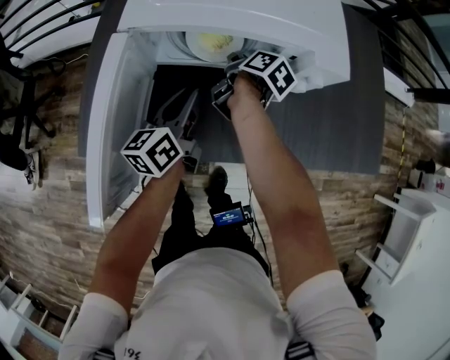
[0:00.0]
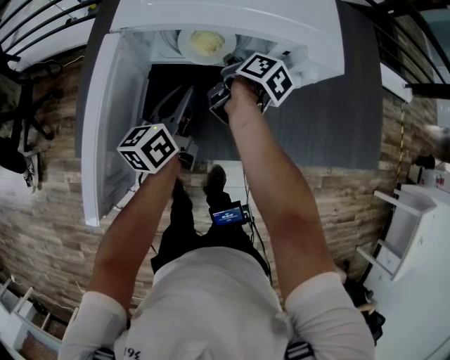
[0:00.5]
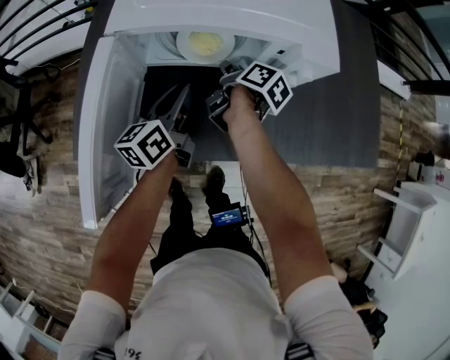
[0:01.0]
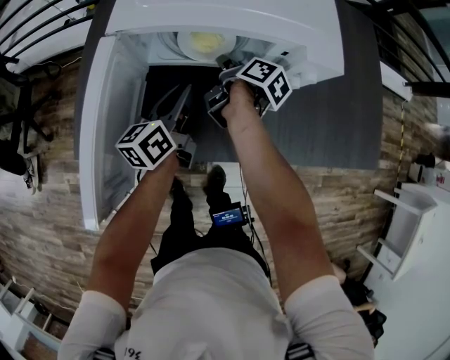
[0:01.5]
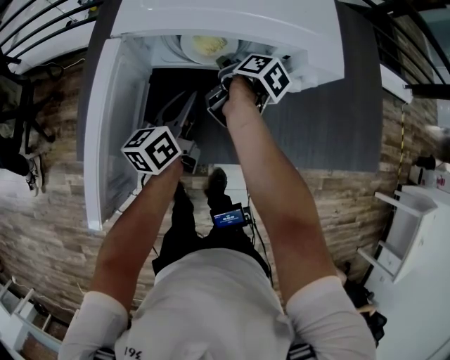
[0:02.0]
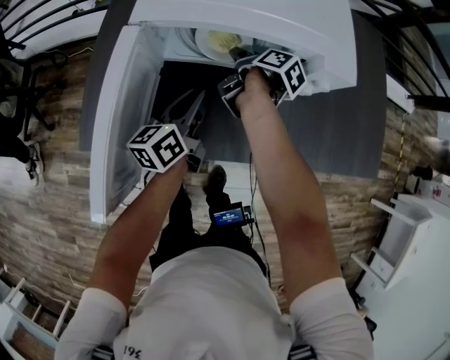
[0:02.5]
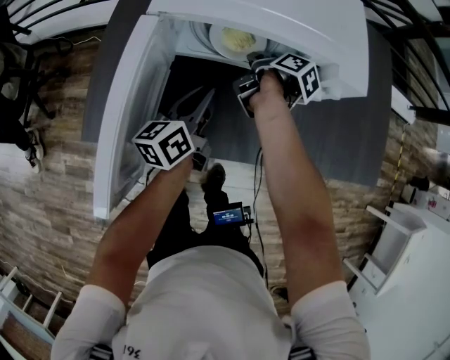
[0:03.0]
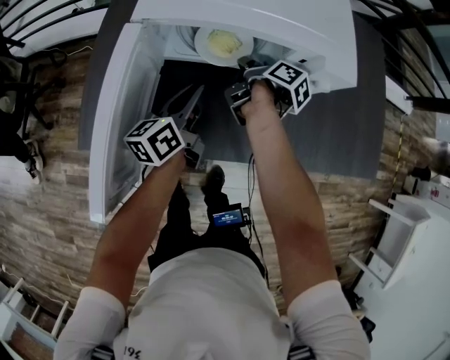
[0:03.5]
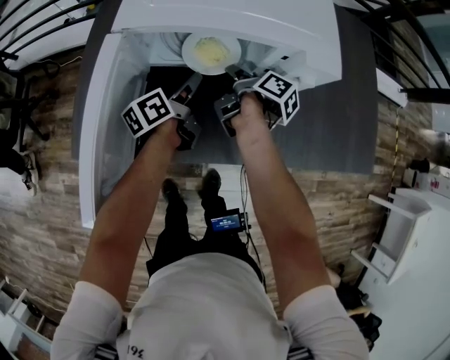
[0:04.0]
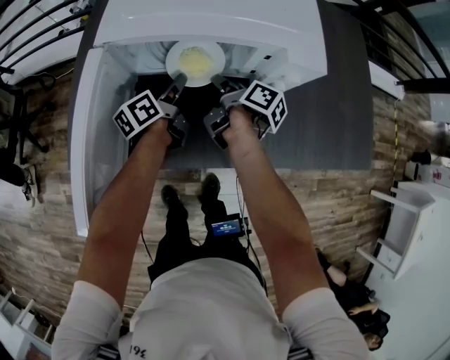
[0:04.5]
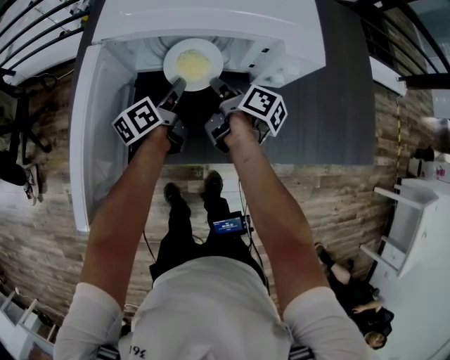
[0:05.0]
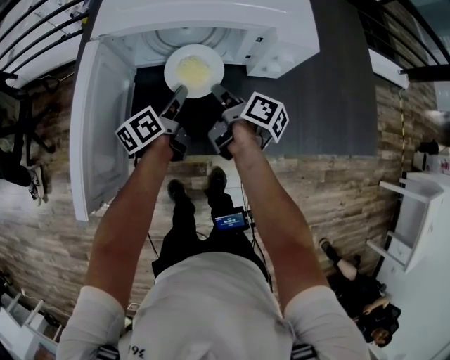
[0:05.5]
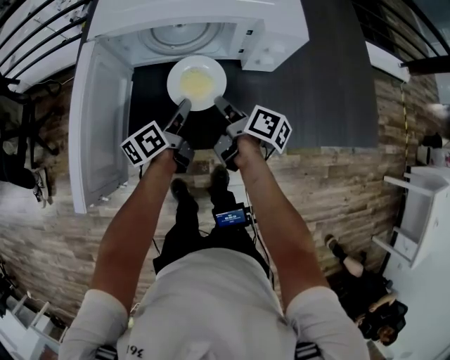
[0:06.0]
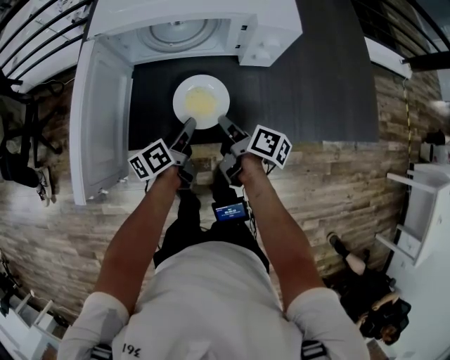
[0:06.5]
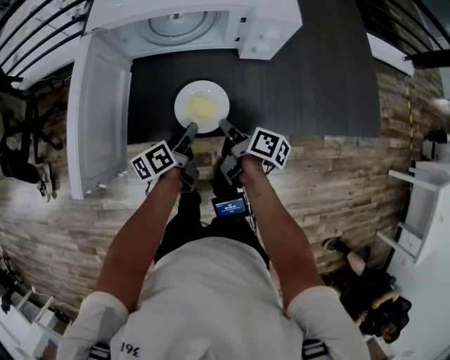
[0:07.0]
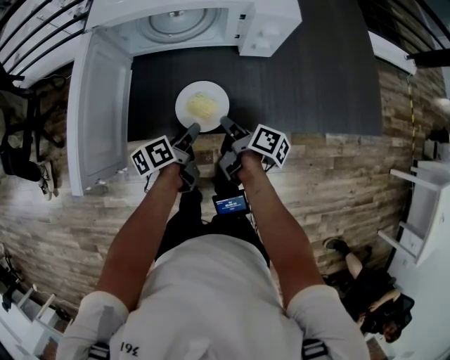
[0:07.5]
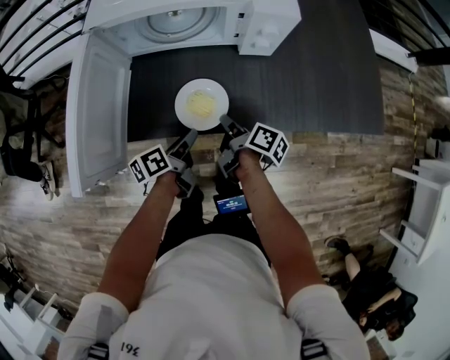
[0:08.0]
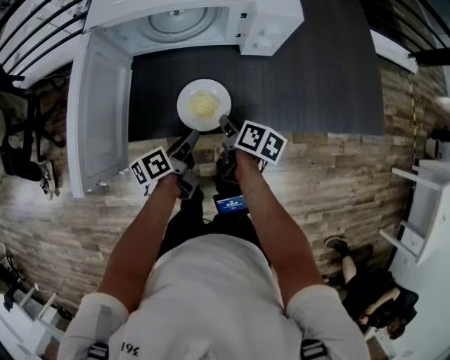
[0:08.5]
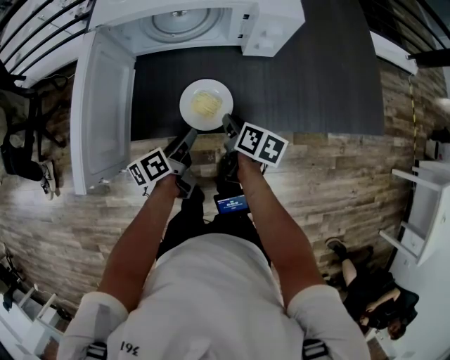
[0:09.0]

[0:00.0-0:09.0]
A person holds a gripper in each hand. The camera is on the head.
0:00.0 to 0:02.0: The right gripper opens its fingers.
0:02.0 to 0:04.5: The right gripper rotates about 20 degrees, and closes its fingers; the left gripper shifts some 10 cm forward and downward.
0:04.5 to 0:07.0: Both grippers travel together backward, approximately 20 cm.
0:07.0 to 0:09.0: The right gripper changes its angle by roughly 20 degrees.

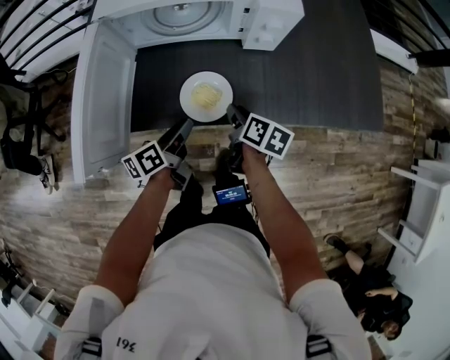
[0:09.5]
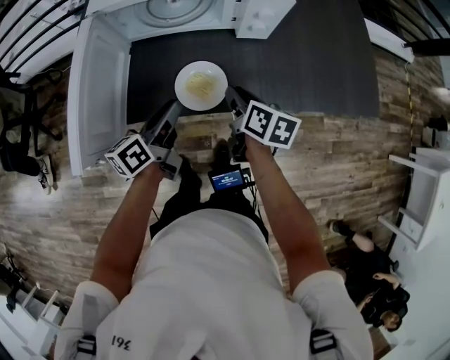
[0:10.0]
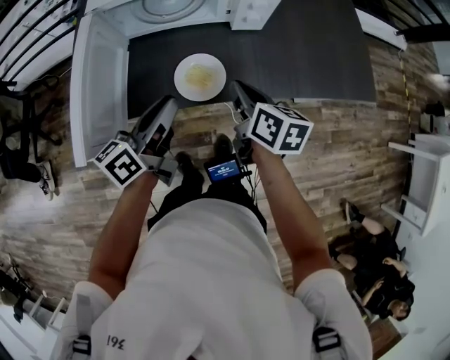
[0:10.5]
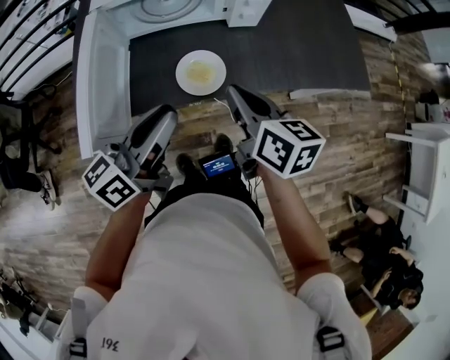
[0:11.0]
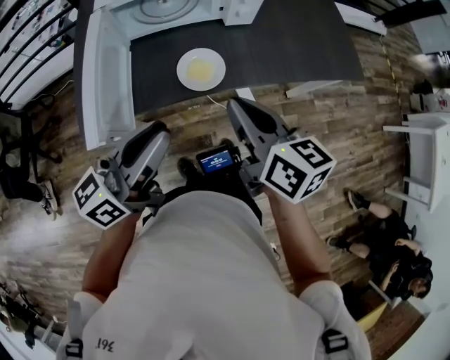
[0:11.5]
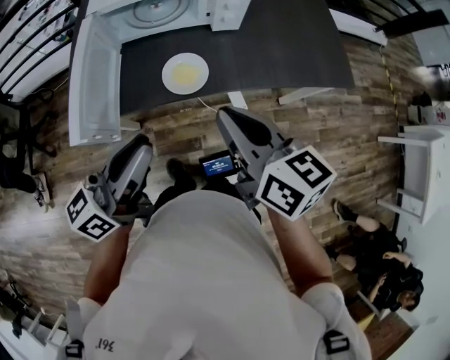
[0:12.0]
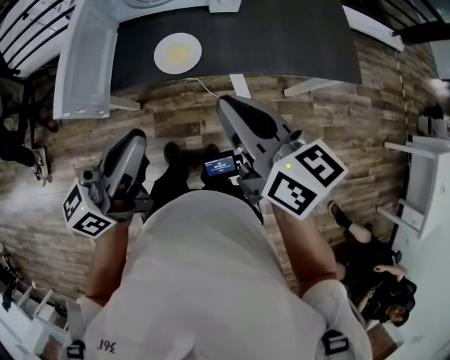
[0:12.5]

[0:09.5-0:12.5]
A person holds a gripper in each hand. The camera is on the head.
0:09.5 to 0:11.0: The right gripper travels upward and backward by about 20 cm, rotates roughly 30 degrees, and closes up. Meanwhile the left gripper heads upward, covering about 20 cm, and turns by about 40 degrees.
0:11.0 to 0:12.5: The left gripper heads backward, to the right and upward, covering approximately 15 cm, while the right gripper is displaced backward, upward and to the right by approximately 15 cm.

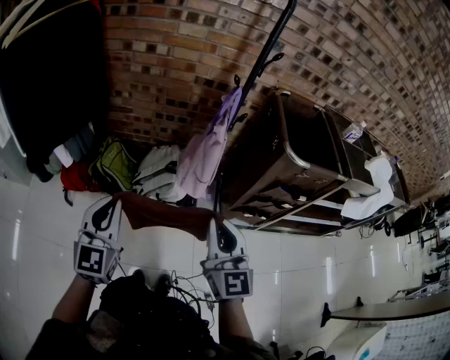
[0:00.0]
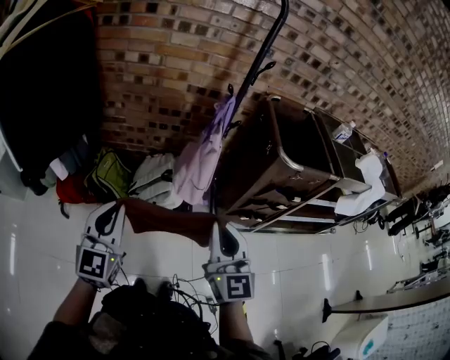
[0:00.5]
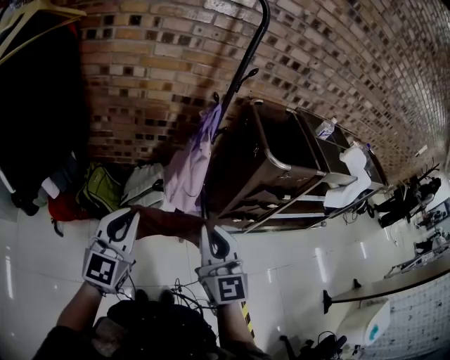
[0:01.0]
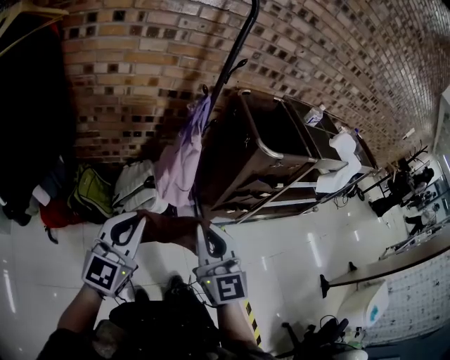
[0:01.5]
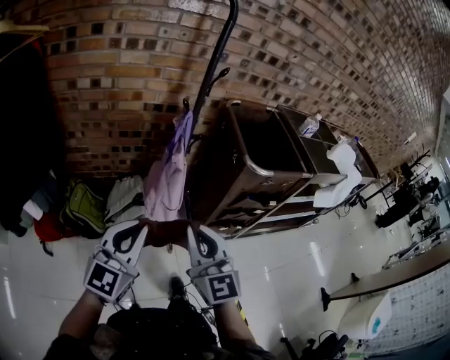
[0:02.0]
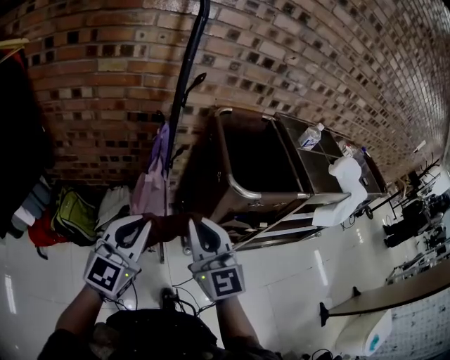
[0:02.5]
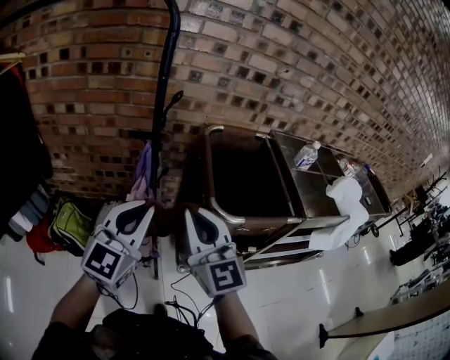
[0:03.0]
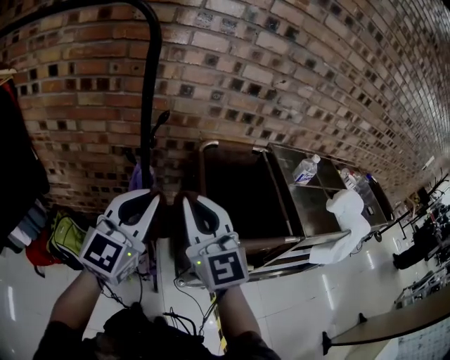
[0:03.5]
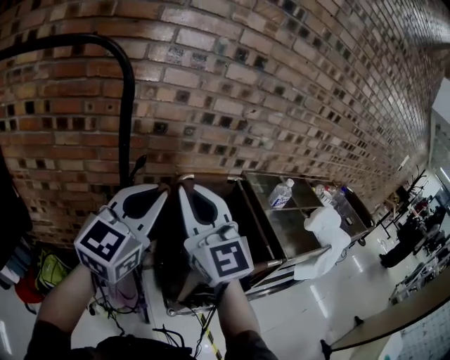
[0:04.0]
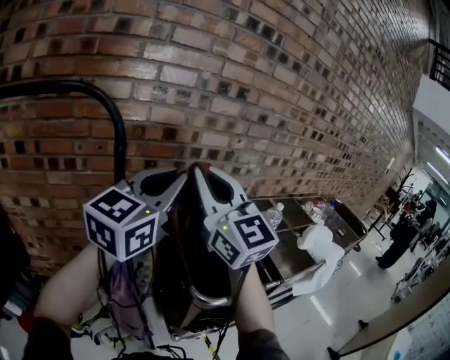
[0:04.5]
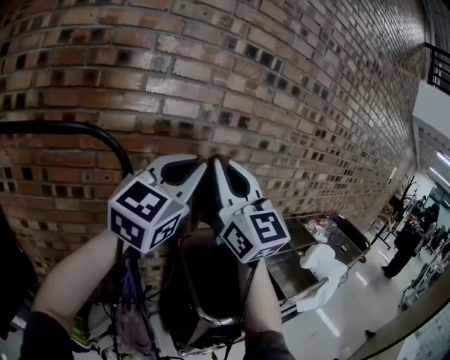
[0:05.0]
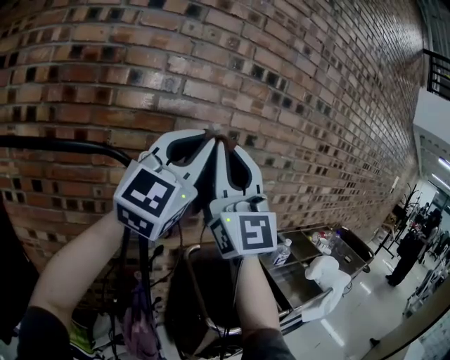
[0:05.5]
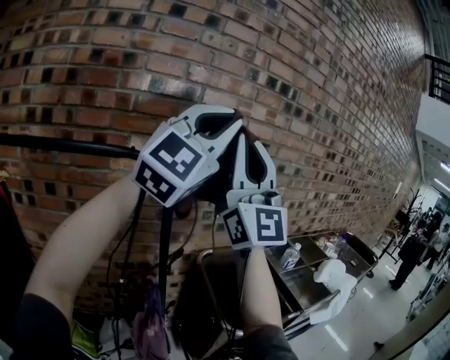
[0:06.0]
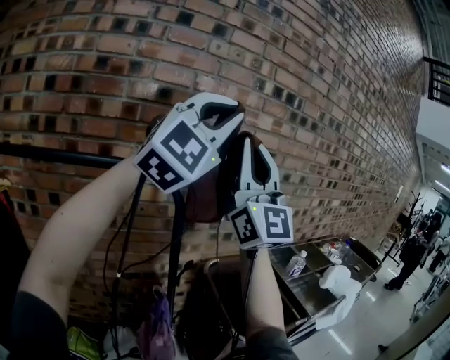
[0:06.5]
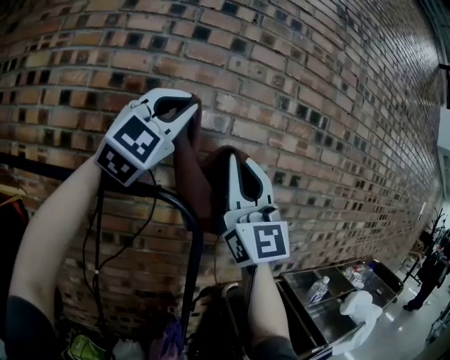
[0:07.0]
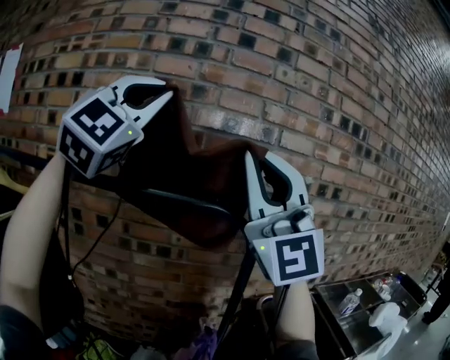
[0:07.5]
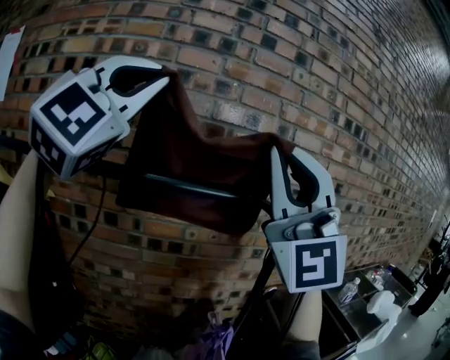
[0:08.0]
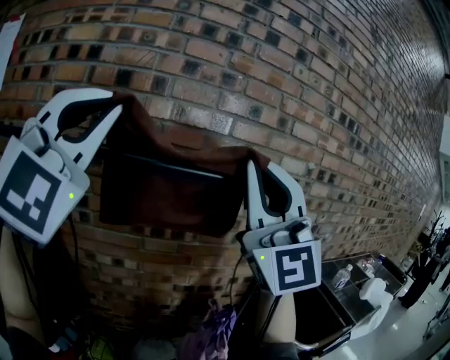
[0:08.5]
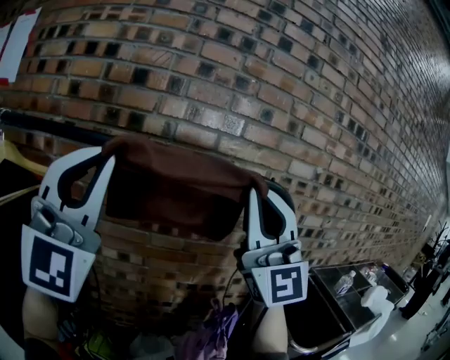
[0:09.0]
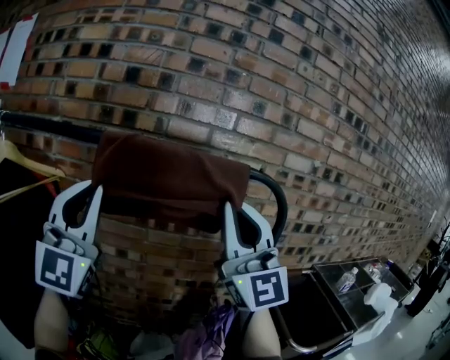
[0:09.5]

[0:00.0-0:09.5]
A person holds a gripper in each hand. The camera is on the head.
0:00.0 to 0:02.0: The right gripper shifts approximately 5 cm forward. The left gripper travels to the right and forward by about 15 cm, and rotates roughly 30 degrees.
0:02.0 to 0:04.0: The left gripper moves forward, to the right and upward, roughly 50 cm. Meanwhile the right gripper travels forward, upward and to the right by approximately 40 cm.
0:04.0 to 0:05.5: Both grippers travel together upward, about 30 cm. The left gripper turns by some 30 degrees, while the right gripper points its fingers roughly 30 degrees further upward.
0:05.5 to 0:07.5: The right gripper changes place by about 20 cm, and swivels about 20 degrees. The left gripper changes place by about 35 cm, and turns by approximately 40 degrees.
0:07.5 to 0:09.5: The right gripper is displaced downward and to the left by about 20 cm. Meanwhile the left gripper heads downward and to the left, covering some 30 cm, and swivels roughly 30 degrees.

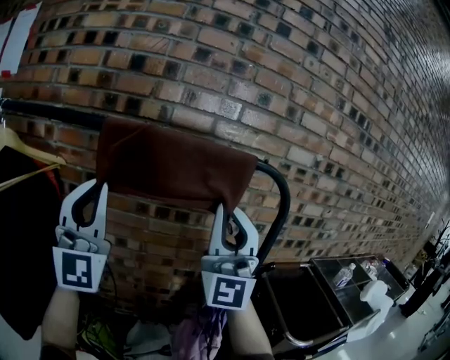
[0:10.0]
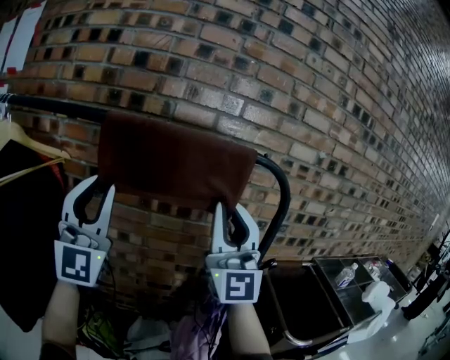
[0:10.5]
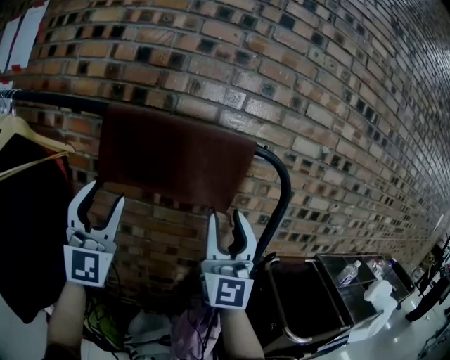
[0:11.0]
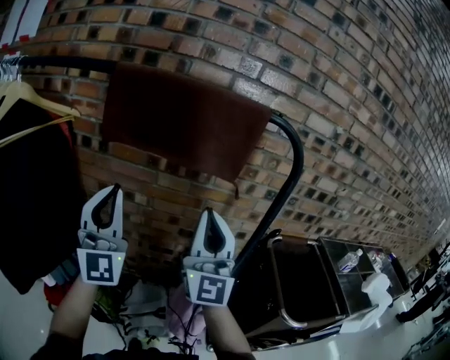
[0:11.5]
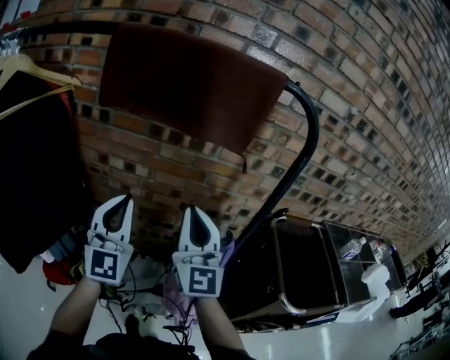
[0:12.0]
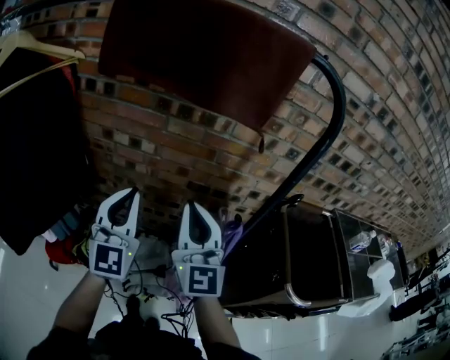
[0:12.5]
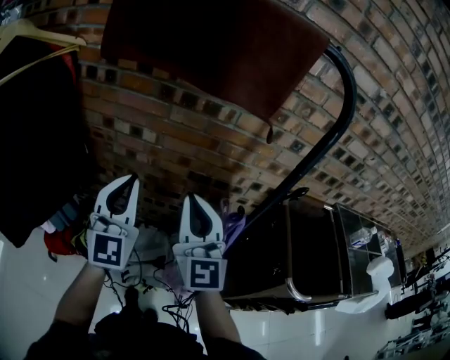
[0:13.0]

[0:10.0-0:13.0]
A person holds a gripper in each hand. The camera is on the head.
0:10.0 to 0:11.5: Both grippers move downward, about 15 cm. The left gripper opens and closes again; the right gripper turns by approximately 30 degrees, and opens, then closes again.
0:11.5 to 0:13.0: The two grippers go some 15 cm downward. The right gripper changes its angle by approximately 20 degrees. Meanwhile the left gripper turns by some 20 degrees.

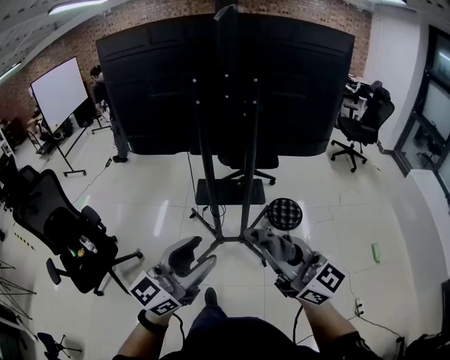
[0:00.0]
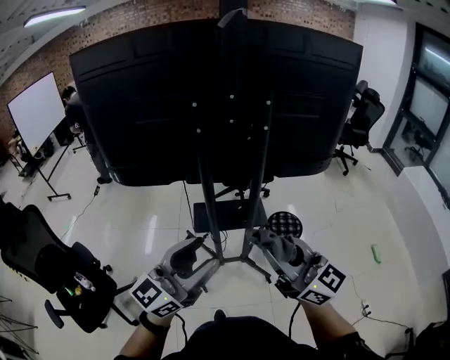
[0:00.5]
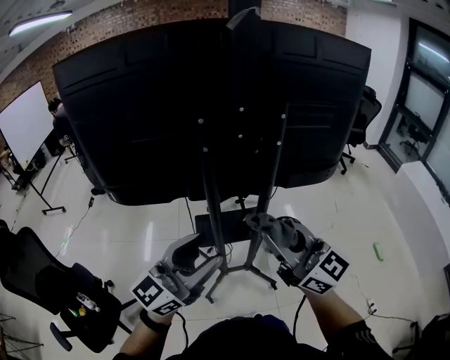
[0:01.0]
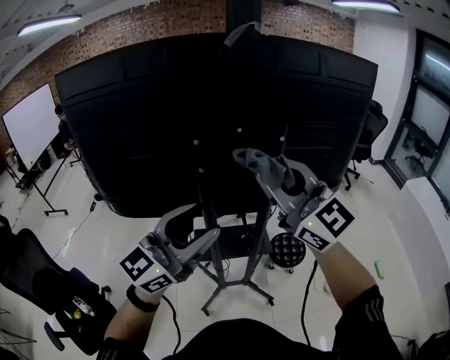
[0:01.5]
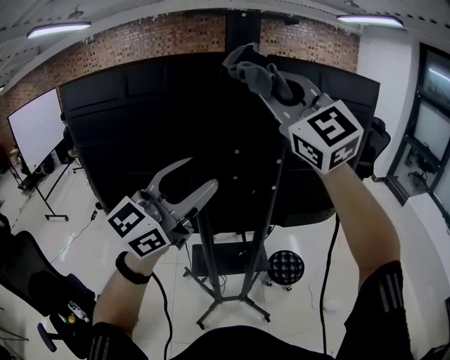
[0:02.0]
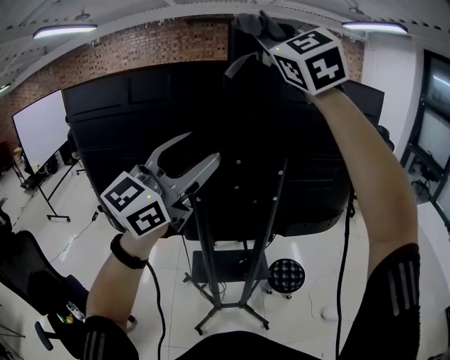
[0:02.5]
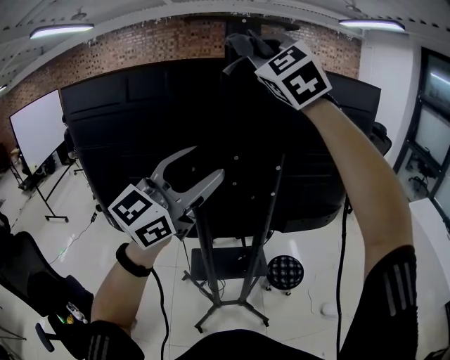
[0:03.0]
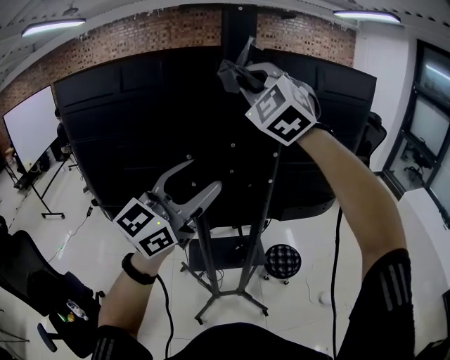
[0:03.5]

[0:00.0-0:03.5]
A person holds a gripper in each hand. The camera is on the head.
0:00.0 to 0:02.0: The two grippers go about 50 cm forward and upward. The right gripper rolls counterclockwise, seen from behind, by about 50 degrees.
0:02.0 to 0:03.5: The right gripper goes roughly 10 cm forward, reaches roughly 10 cm upward, then returns, and turns by roughly 30 degrees. The left gripper reaches about 5 cm upward, then returns.
